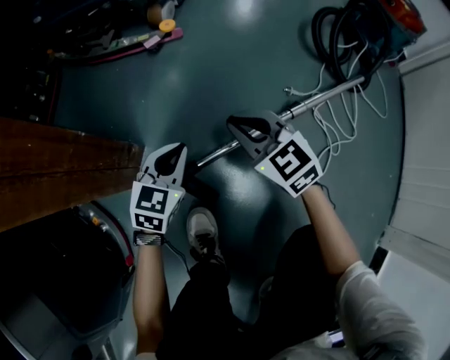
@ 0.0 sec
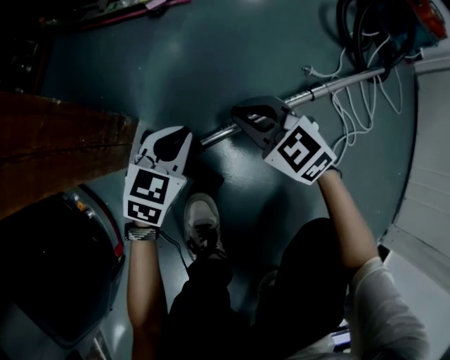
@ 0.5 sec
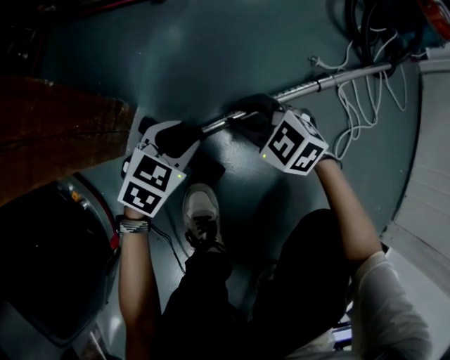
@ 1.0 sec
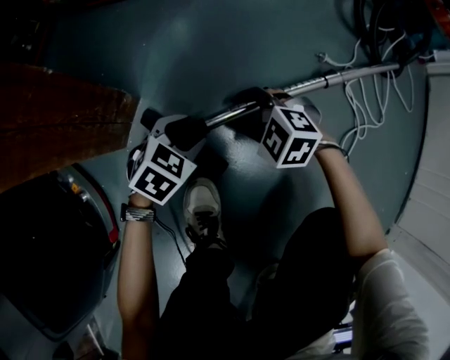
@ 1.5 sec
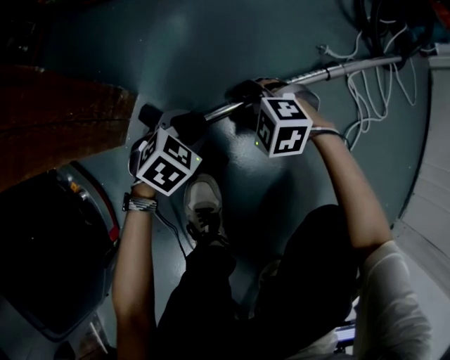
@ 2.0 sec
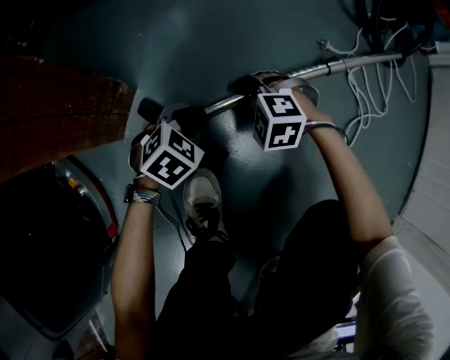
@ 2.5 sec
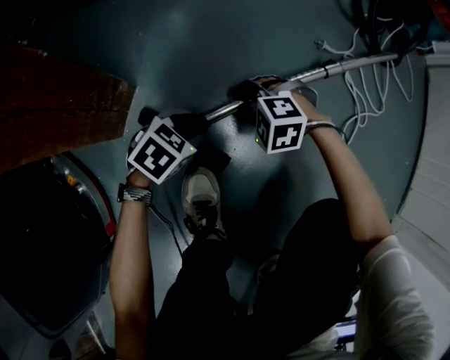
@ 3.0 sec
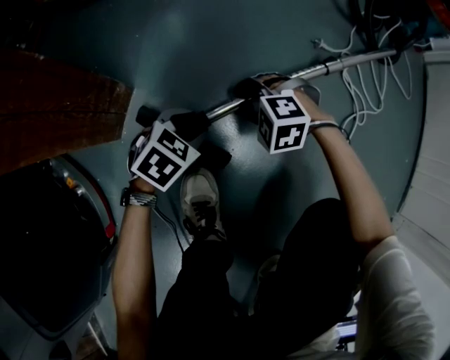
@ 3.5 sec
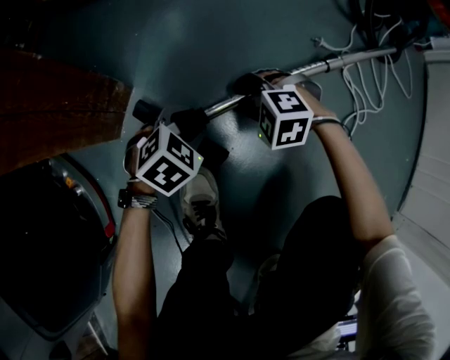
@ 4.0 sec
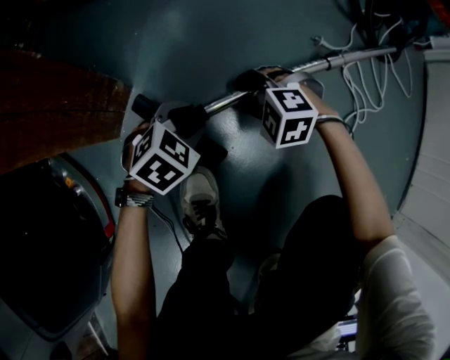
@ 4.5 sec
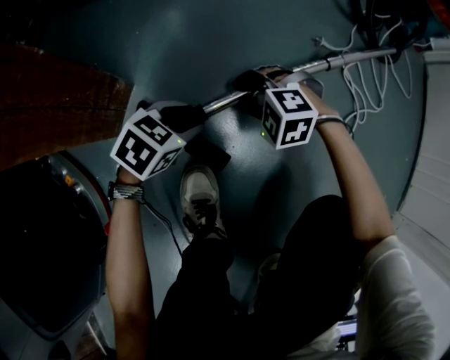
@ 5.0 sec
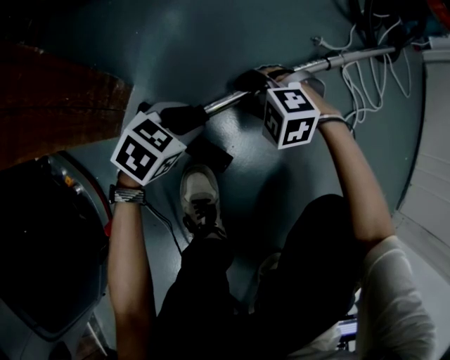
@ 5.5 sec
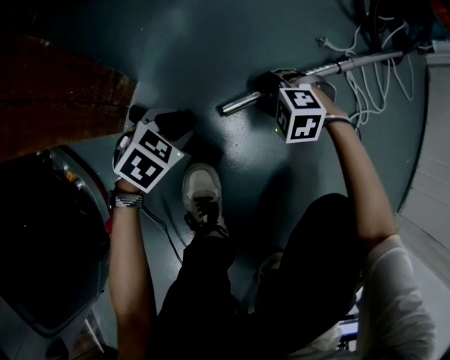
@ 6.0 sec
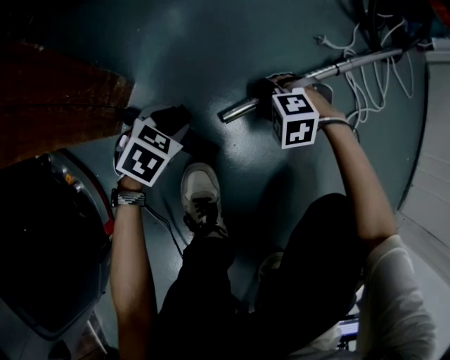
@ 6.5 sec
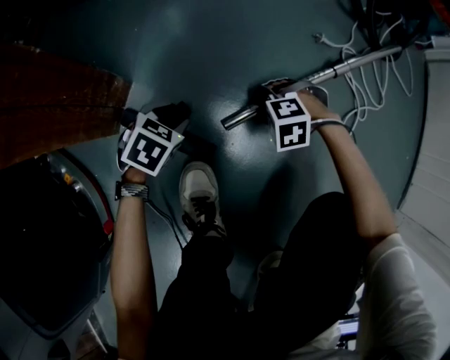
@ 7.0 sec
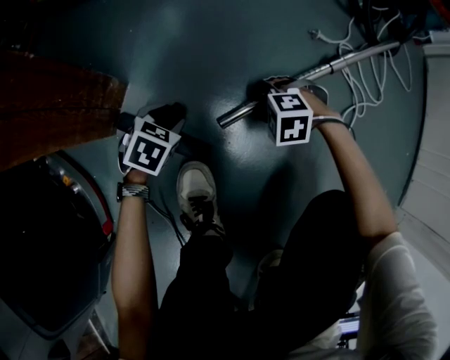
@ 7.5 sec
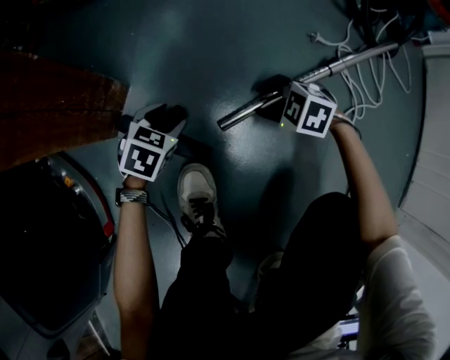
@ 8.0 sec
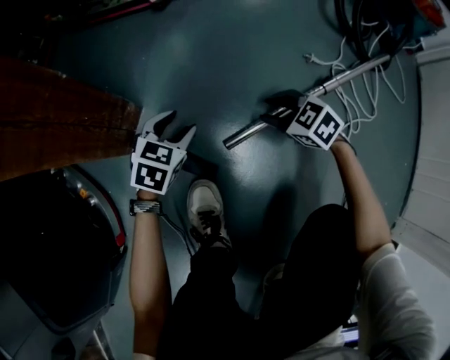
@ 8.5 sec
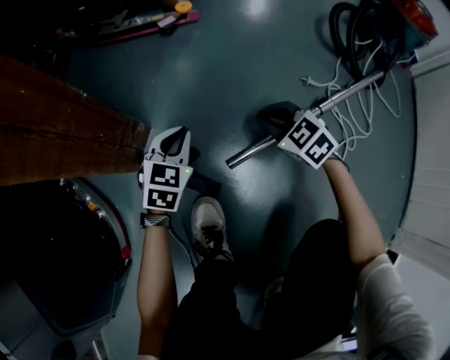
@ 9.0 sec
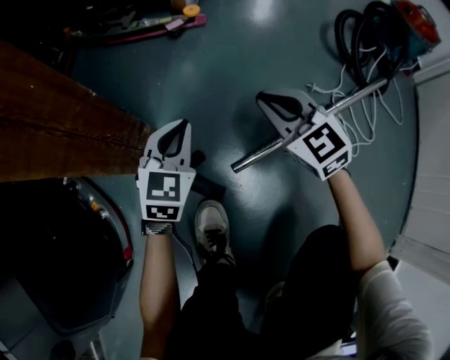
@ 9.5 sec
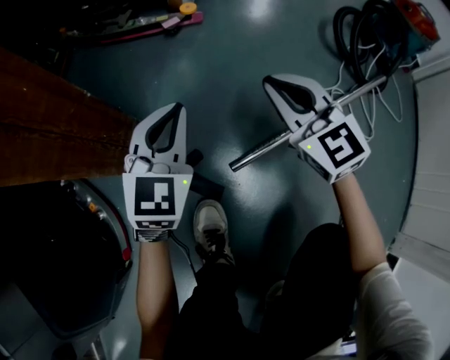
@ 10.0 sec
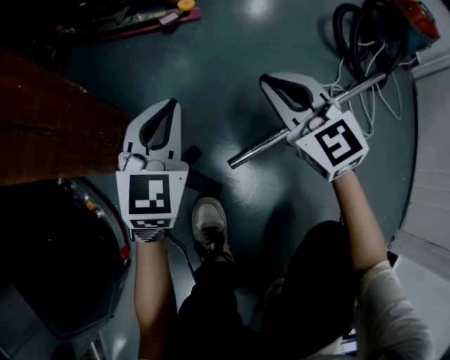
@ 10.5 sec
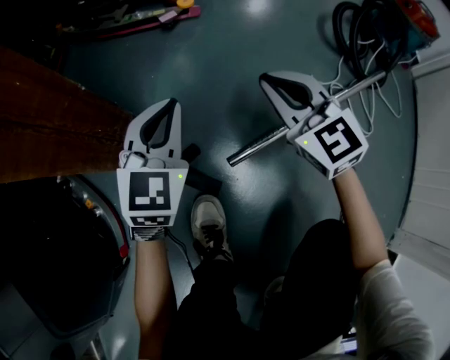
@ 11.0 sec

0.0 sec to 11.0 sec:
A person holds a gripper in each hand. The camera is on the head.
0.0 sec to 2.0 sec: Both grippers move downward, about 20 cm. The left gripper rotates about 30 degrees, and opens its fingers. Meanwhile the right gripper angles its fingers downward, by some 40 degrees, and opens up.
2.0 sec to 5.5 sec: There are only small adjustments of the grippers.
5.5 sec to 7.5 sec: The left gripper heads downward, covering approximately 5 cm. Meanwhile the right gripper shifts by some 10 cm.
7.5 sec to 9.0 sec: Both grippers move upward, about 15 cm. The left gripper rotates roughly 30 degrees, and closes its fingers. Meanwhile the right gripper tips its fingers upward by about 30 degrees, and closes.
9.0 sec to 11.0 sec: The two grippers go roughly 15 cm upward. The right gripper turns by some 30 degrees.

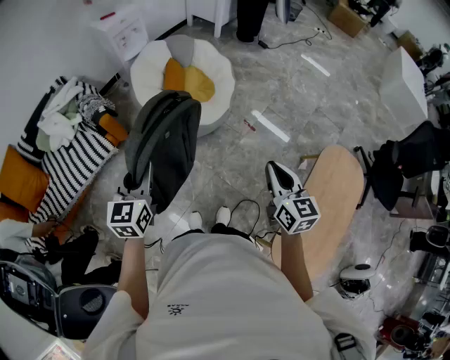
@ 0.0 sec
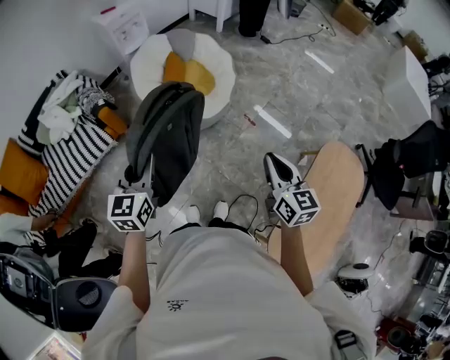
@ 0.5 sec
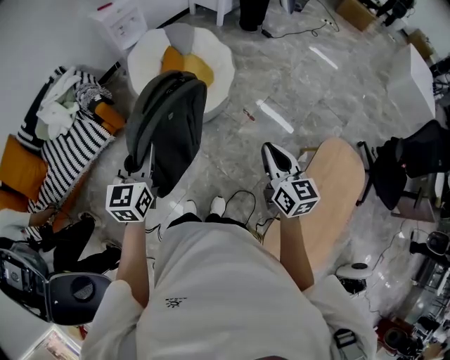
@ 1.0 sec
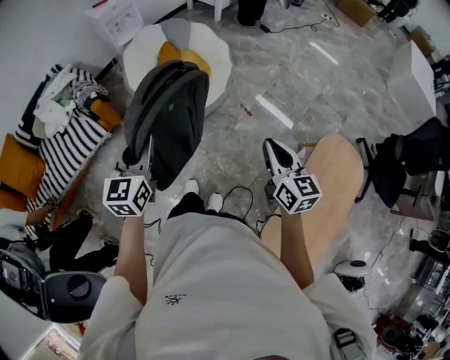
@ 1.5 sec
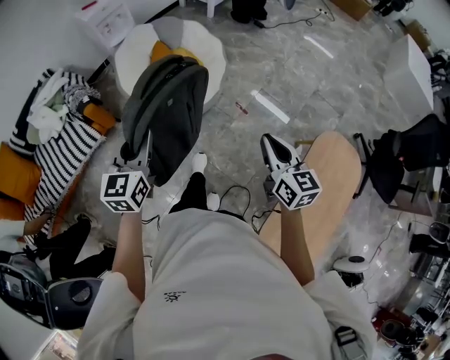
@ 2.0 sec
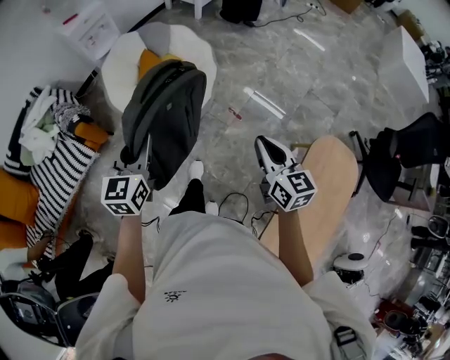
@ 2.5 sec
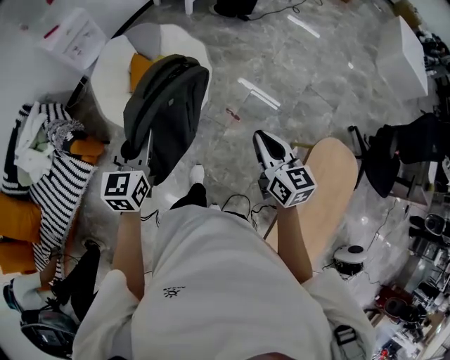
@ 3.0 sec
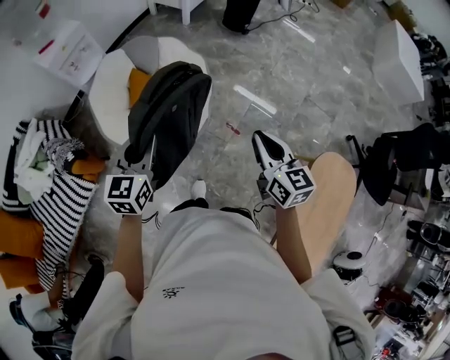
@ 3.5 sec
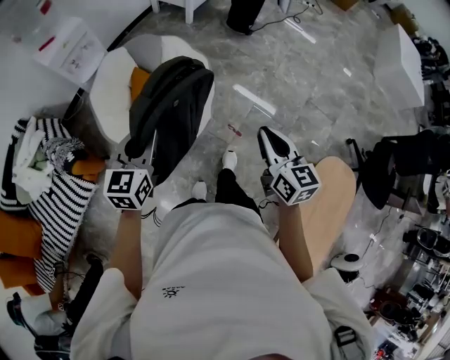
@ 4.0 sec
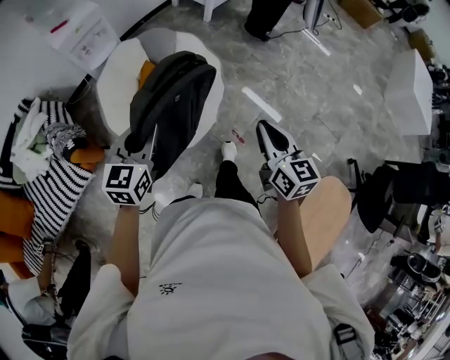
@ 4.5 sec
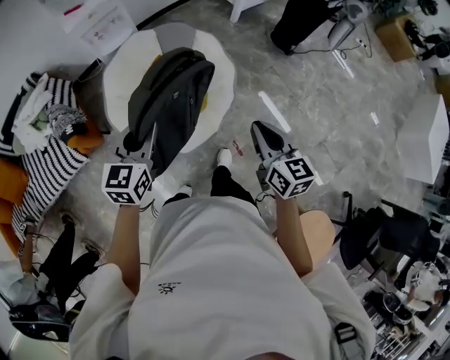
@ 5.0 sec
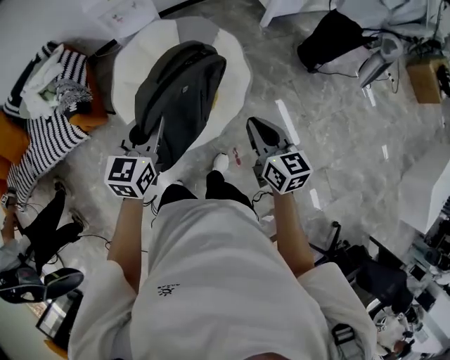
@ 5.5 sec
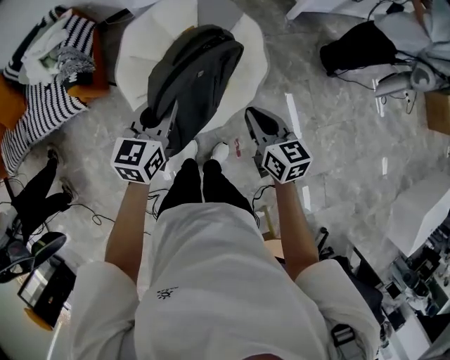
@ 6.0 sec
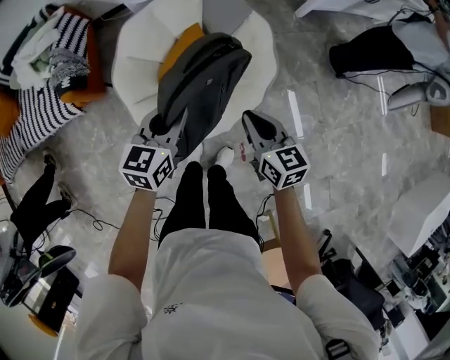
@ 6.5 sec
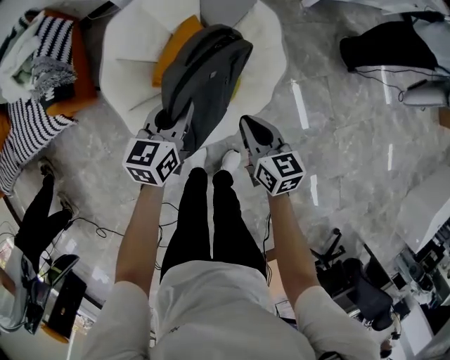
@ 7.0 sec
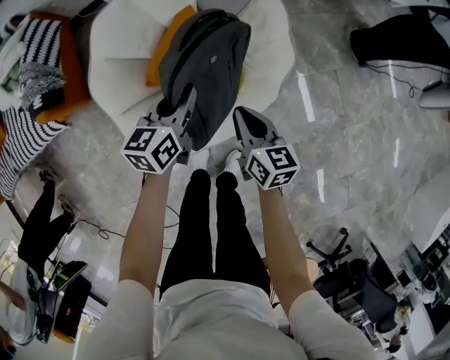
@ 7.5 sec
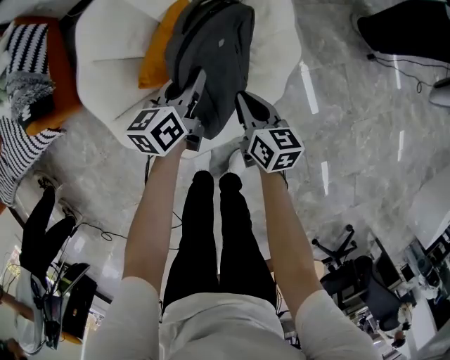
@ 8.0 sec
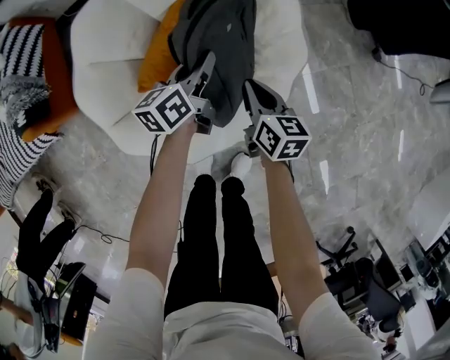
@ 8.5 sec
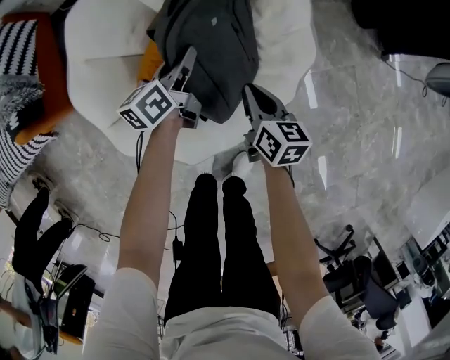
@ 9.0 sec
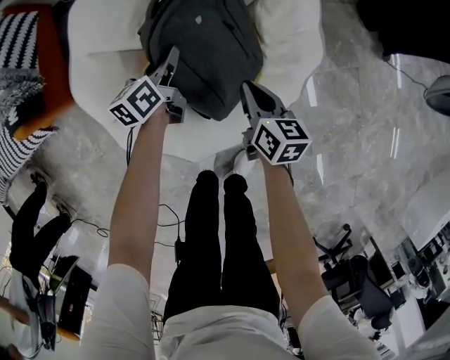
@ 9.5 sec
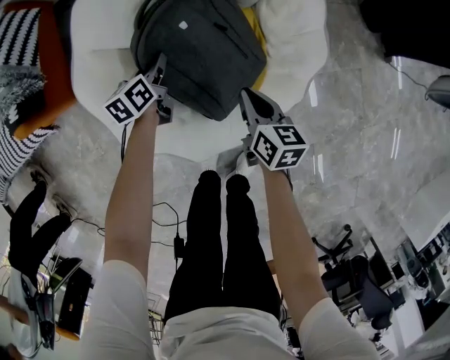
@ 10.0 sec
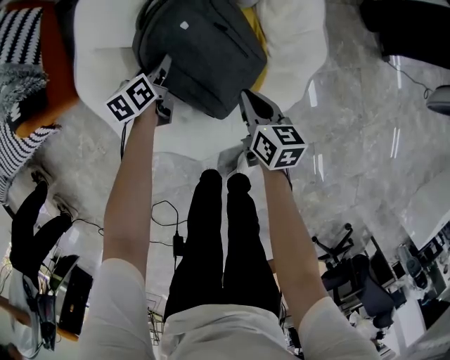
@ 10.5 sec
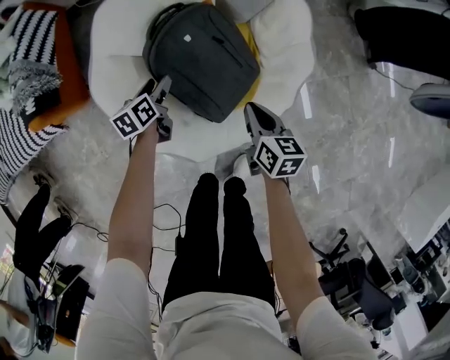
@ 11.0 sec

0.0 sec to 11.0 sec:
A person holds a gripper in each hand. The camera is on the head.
0.0 sec to 2.0 sec: Both grippers travel together to the right and forward, some 10 cm.
2.0 sec to 3.5 sec: The two grippers go roughly 25 cm forward.
3.5 sec to 5.5 sec: The right gripper ends up approximately 35 cm from where it was, and turns by roughly 40 degrees, while the left gripper ends up some 20 cm from where it was, and changes its angle by some 30 degrees.
5.5 sec to 7.5 sec: The right gripper heads downward, covering roughly 30 cm. Meanwhile the left gripper heads downward and forward, covering about 35 cm, and turns by approximately 20 degrees.
7.5 sec to 9.0 sec: Both grippers travel together downward and forward, about 15 cm. The left gripper rotates some 20 degrees.
9.0 sec to 11.0 sec: The left gripper goes some 15 cm to the left, rotates roughly 20 degrees, and opens its fingers. The right gripper changes place by some 5 cm.

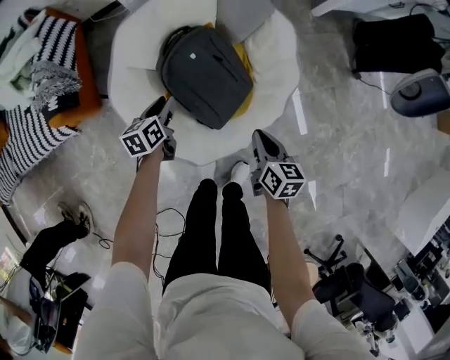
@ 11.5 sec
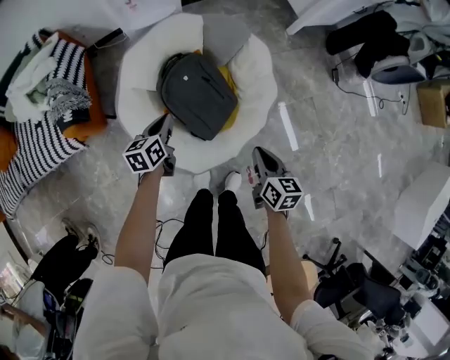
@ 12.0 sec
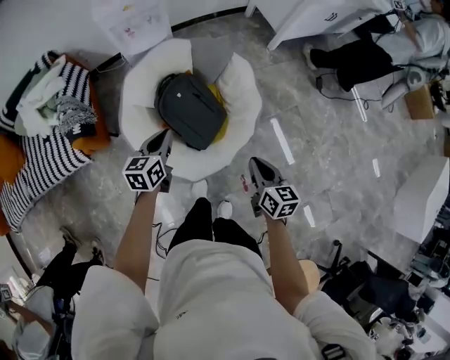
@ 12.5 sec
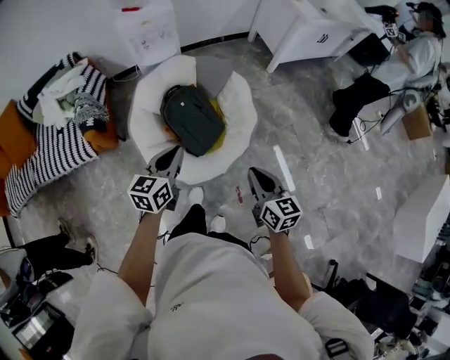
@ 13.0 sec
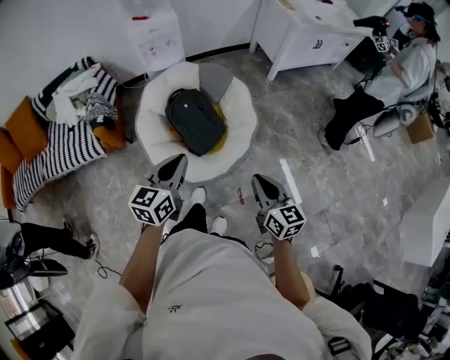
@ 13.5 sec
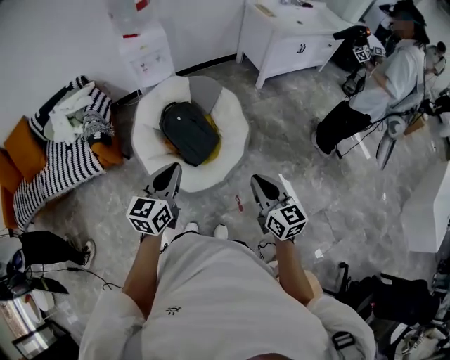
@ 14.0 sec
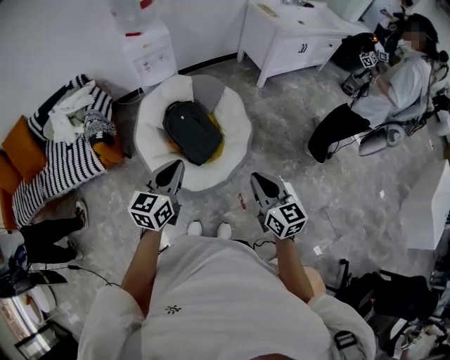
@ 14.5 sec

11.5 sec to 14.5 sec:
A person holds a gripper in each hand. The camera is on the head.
11.5 sec to 13.0 sec: The grippers both shift upward and backward by some 40 cm. The left gripper rotates some 30 degrees, and closes up. Meanwhile the right gripper changes its angle by roughly 20 degrees.
13.0 sec to 14.5 sec: Both grippers travel together backward and upward, approximately 15 cm.

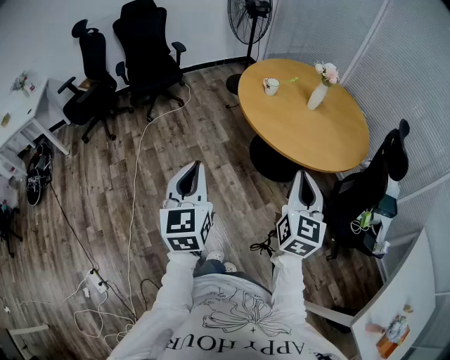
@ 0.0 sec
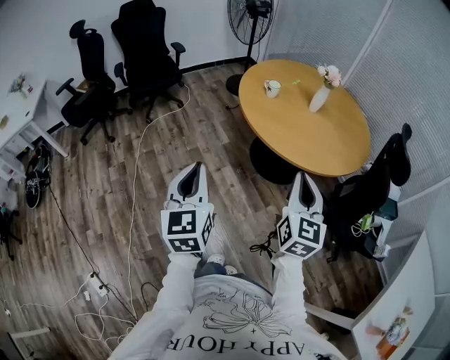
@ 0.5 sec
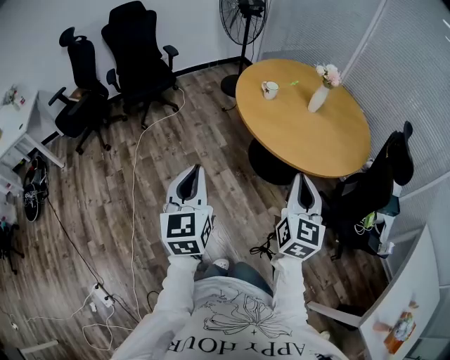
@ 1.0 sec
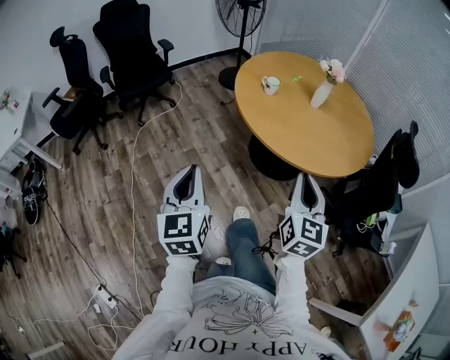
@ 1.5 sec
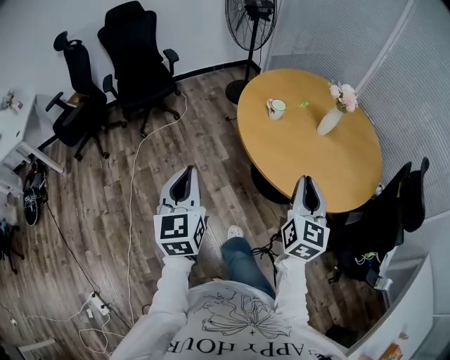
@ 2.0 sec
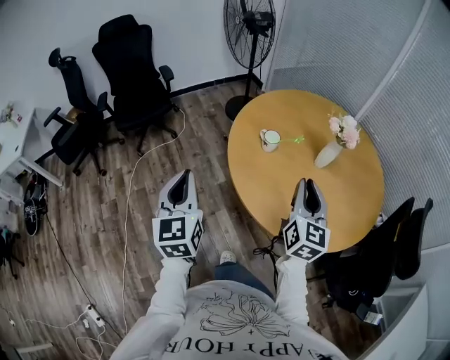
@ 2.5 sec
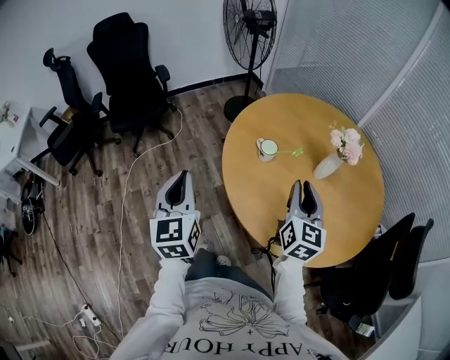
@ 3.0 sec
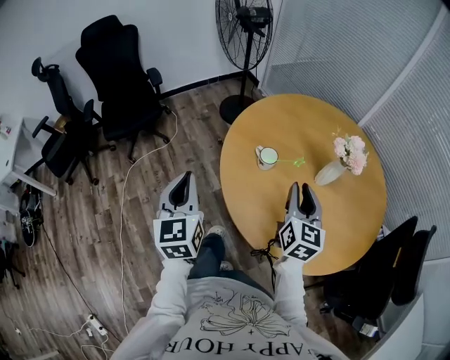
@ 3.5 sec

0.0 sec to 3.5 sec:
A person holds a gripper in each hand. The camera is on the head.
0.0 sec to 2.0 sec: The grippers both shift forward by some 25 cm.
2.0 sec to 3.5 sec: The grippers both shift forward by approximately 30 cm.
